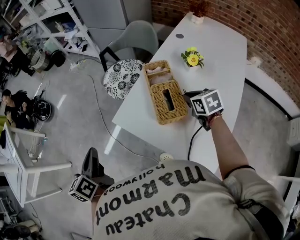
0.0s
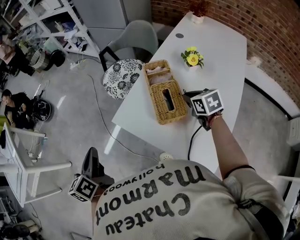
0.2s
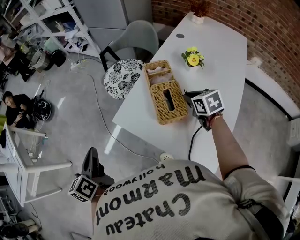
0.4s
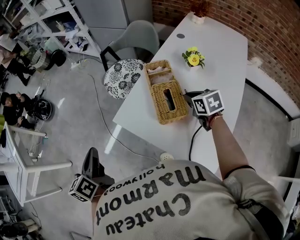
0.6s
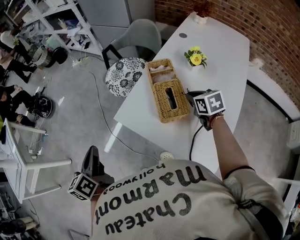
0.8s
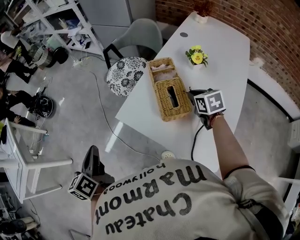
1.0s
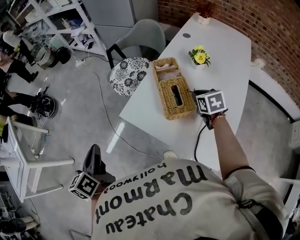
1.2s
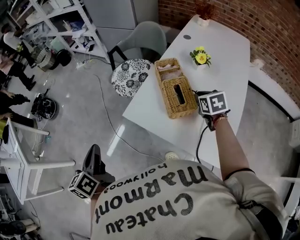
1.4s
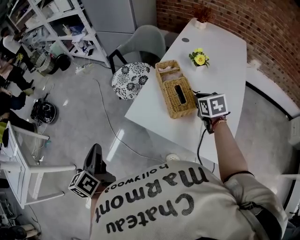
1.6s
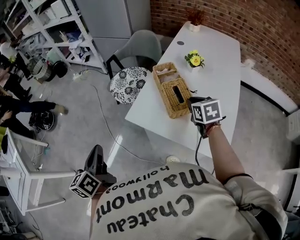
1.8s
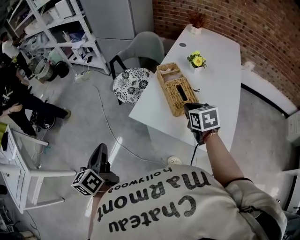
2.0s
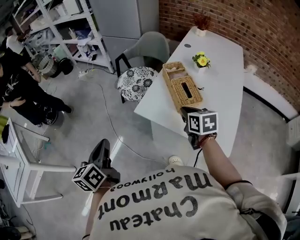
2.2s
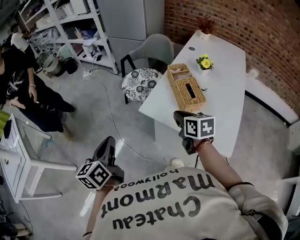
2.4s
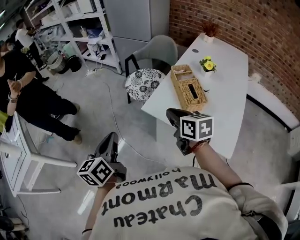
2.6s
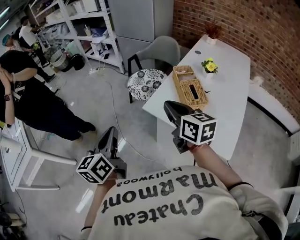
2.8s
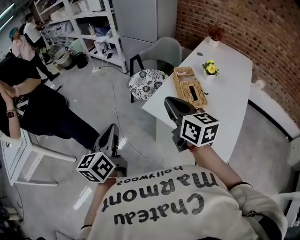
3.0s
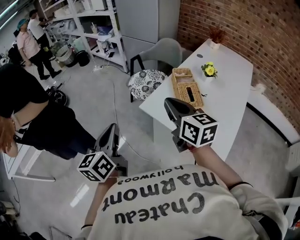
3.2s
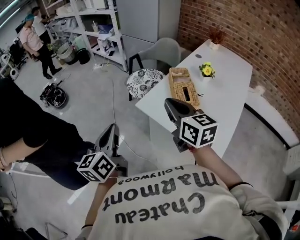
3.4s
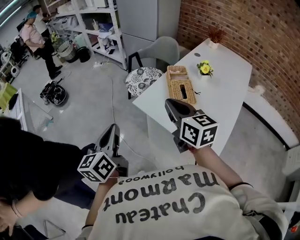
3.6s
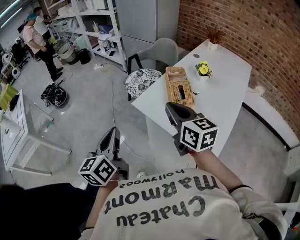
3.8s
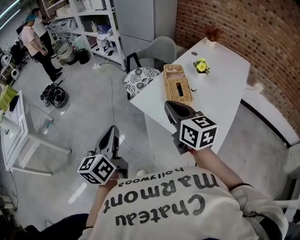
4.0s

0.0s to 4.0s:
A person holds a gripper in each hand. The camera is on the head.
0.0s to 1.4s: There are only small adjustments of the grippers.
1.4s to 2.6s: The left gripper shifts approximately 5 cm backward; the right gripper heads to the left and backward, covering some 30 cm, and turns by about 30 degrees.
2.6s to 4.0s: The left gripper heads to the right and backward, covering some 10 cm. Meanwhile the right gripper goes approximately 15 cm upward, backward and to the right.

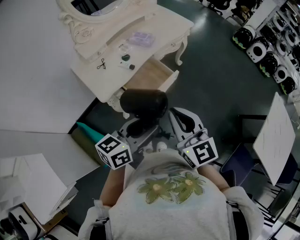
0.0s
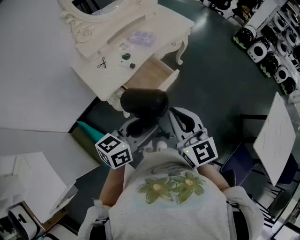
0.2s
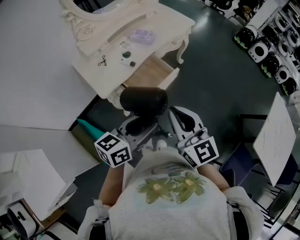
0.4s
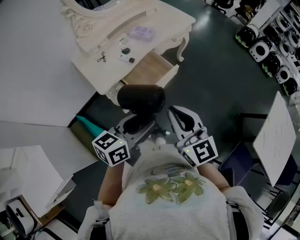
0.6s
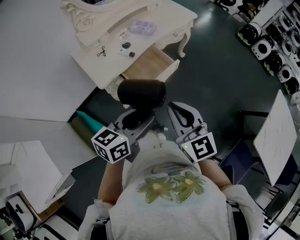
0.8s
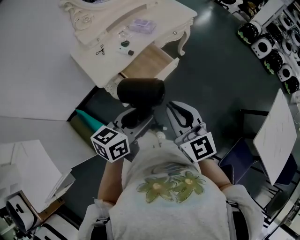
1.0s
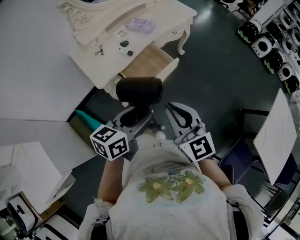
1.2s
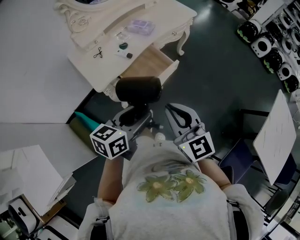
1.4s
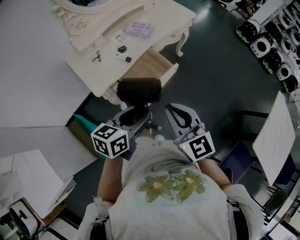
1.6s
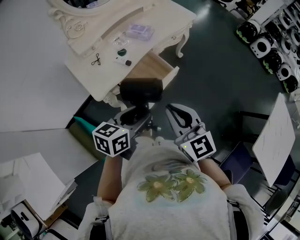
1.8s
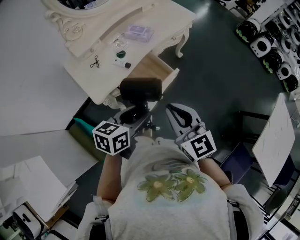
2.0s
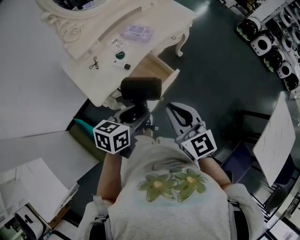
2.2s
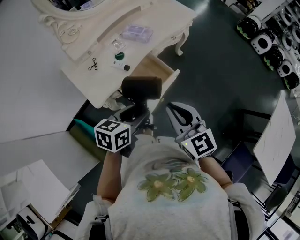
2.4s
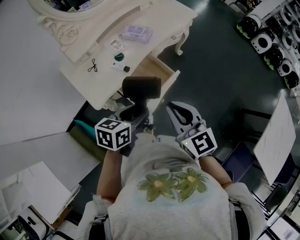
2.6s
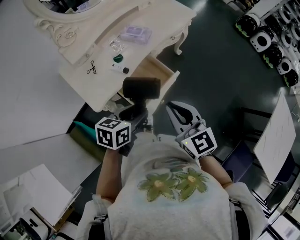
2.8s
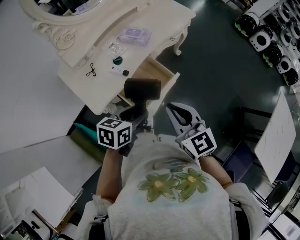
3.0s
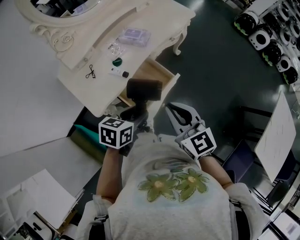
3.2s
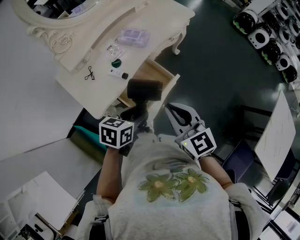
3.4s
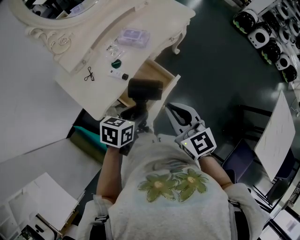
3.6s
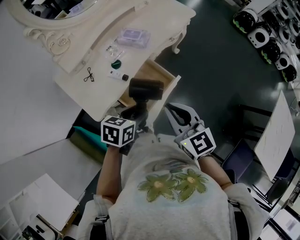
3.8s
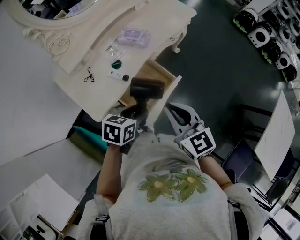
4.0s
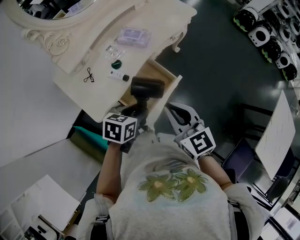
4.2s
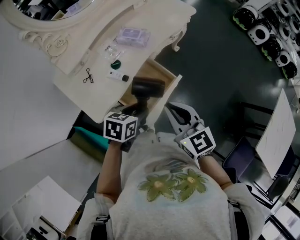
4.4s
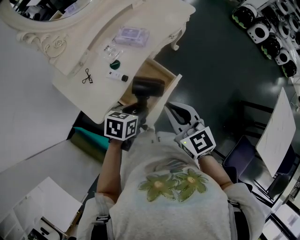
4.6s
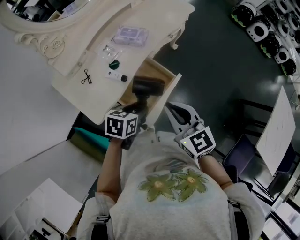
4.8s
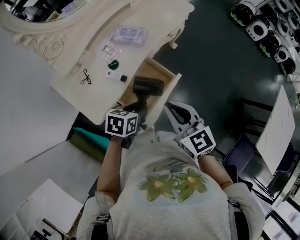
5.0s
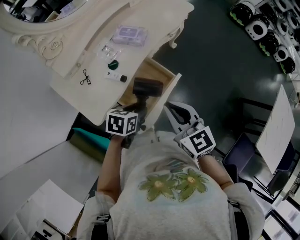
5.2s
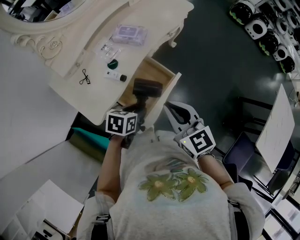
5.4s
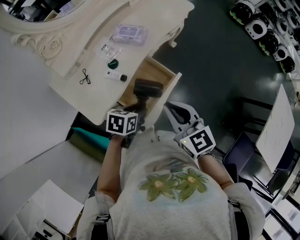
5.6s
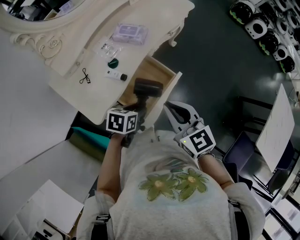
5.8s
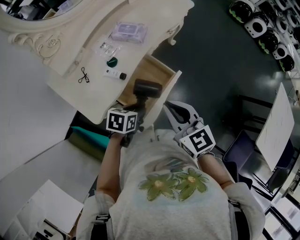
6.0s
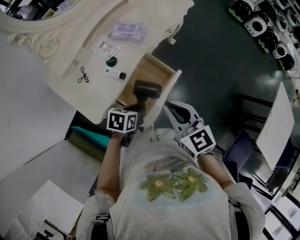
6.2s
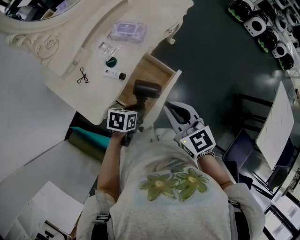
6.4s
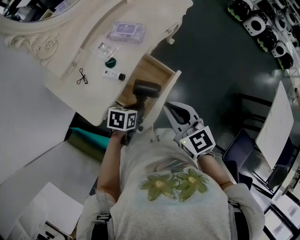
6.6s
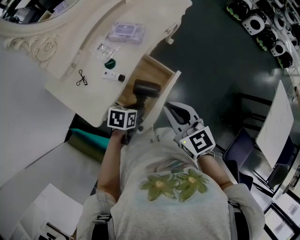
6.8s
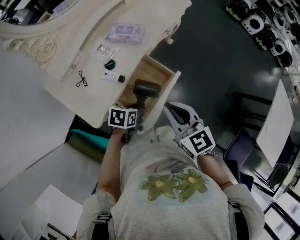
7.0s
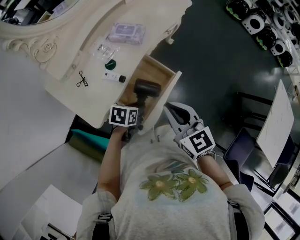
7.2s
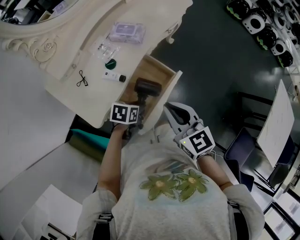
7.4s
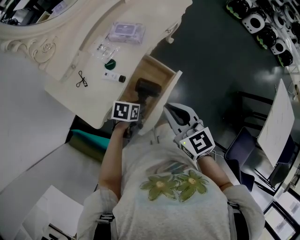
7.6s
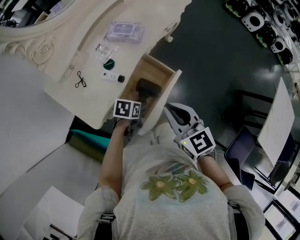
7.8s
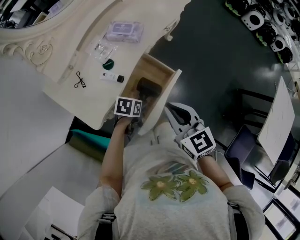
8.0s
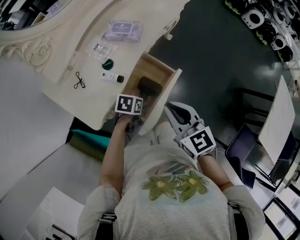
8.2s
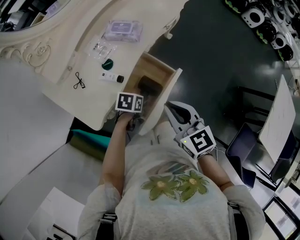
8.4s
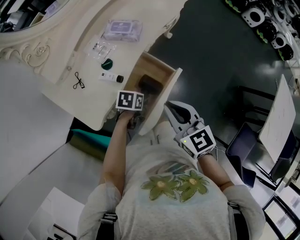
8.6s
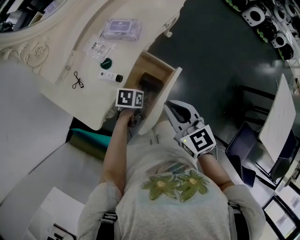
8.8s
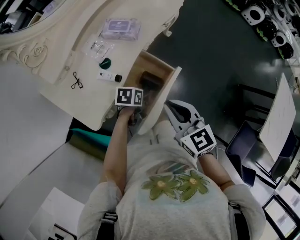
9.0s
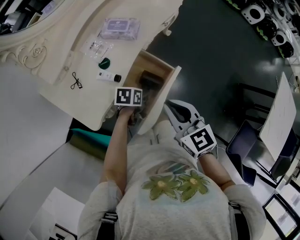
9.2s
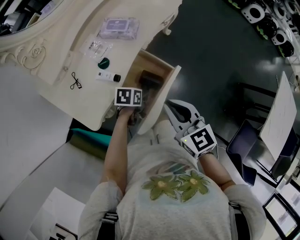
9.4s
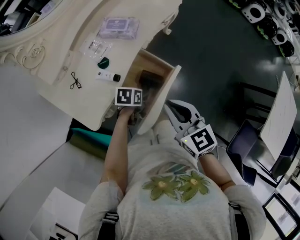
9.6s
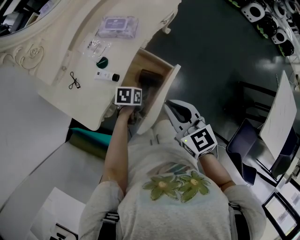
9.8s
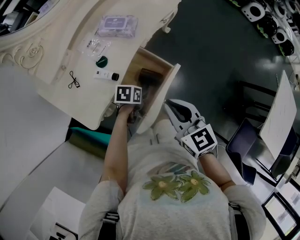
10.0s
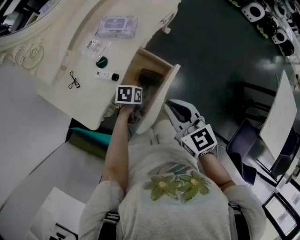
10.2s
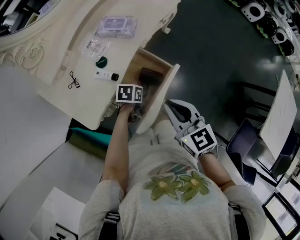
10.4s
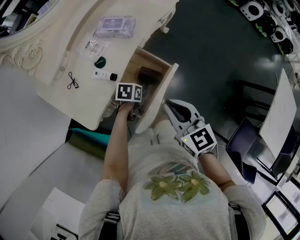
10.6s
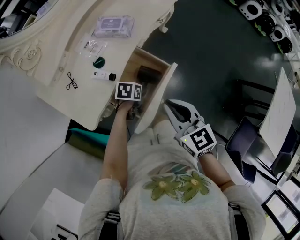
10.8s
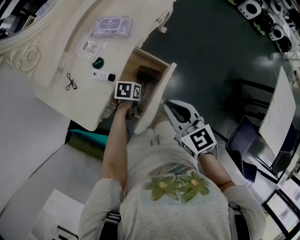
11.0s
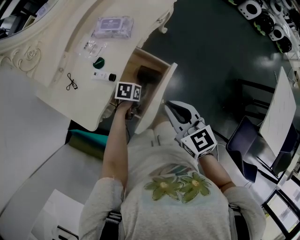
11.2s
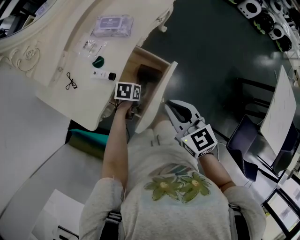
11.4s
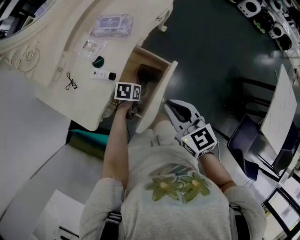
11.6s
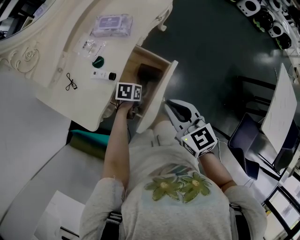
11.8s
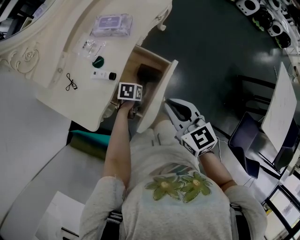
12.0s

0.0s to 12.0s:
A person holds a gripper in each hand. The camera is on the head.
0.0s to 1.6s: The left gripper is displaced downward by about 5 cm.
1.6s to 3.0s: The right gripper goes about 10 cm forward, while the left gripper moves forward and downward, about 15 cm.
3.0s to 4.4s: The left gripper travels downward by approximately 5 cm. The right gripper ends up roughly 5 cm from where it was.
4.4s to 6.0s: The left gripper is displaced downward by about 10 cm.
6.0s to 7.6s: The left gripper shifts some 5 cm downward.
7.6s to 9.0s: The left gripper shifts some 5 cm forward.
9.0s to 10.4s: The grippers make only small movements.
10.4s to 12.0s: The grippers make only small movements.

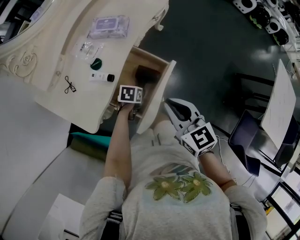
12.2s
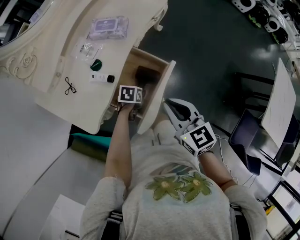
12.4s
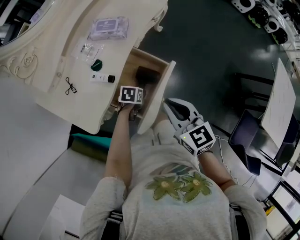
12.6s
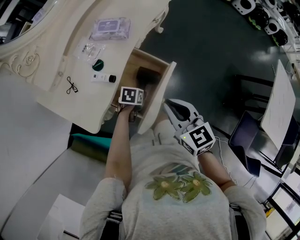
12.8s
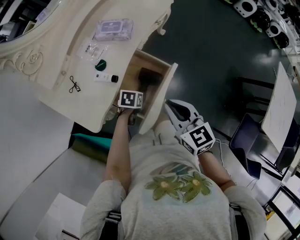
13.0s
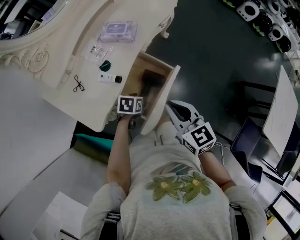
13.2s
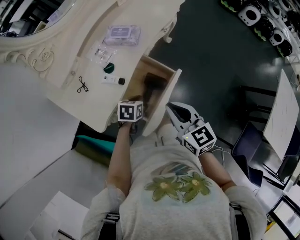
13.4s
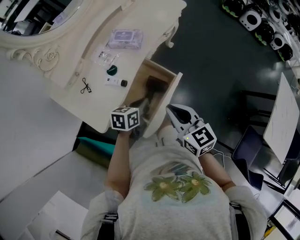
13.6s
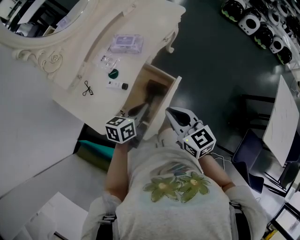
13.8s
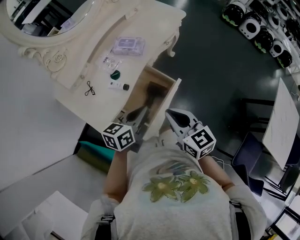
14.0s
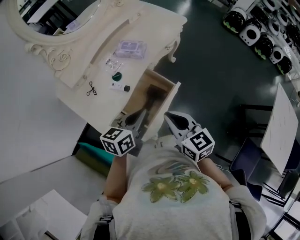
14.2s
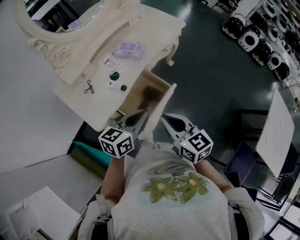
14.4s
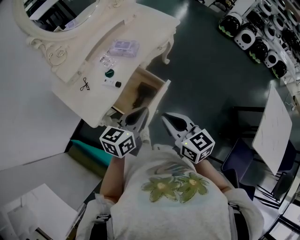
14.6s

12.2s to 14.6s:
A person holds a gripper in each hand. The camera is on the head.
12.2s to 13.4s: The left gripper travels upward by approximately 10 cm, and closes its fingers.
13.4s to 14.6s: The right gripper is displaced upward and backward by about 10 cm. The left gripper travels upward by approximately 25 cm, and tips its fingers upward by some 40 degrees.

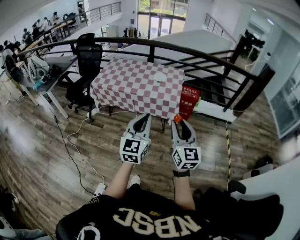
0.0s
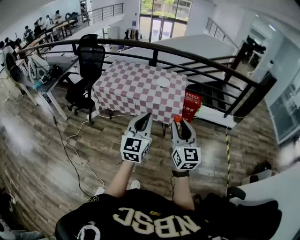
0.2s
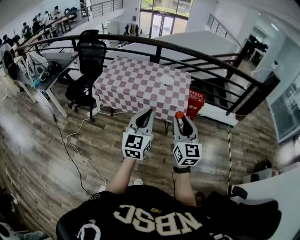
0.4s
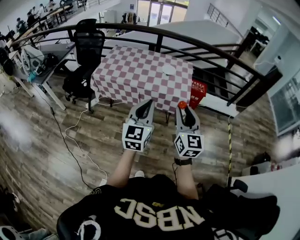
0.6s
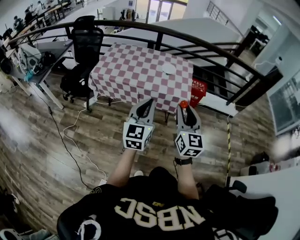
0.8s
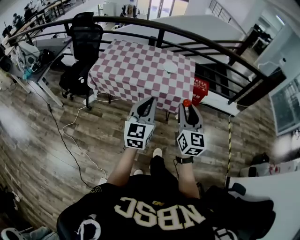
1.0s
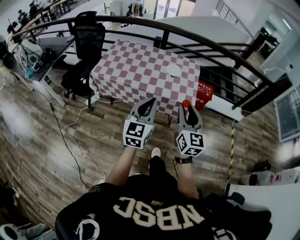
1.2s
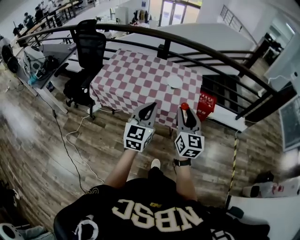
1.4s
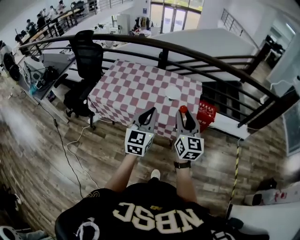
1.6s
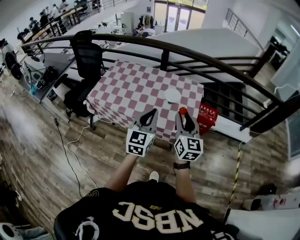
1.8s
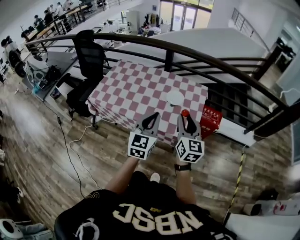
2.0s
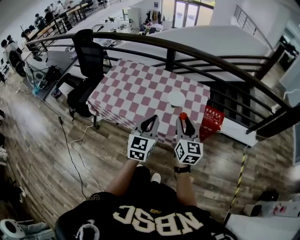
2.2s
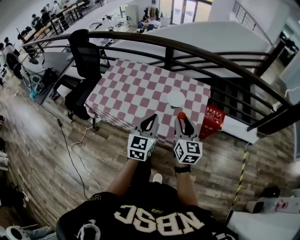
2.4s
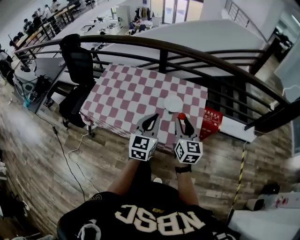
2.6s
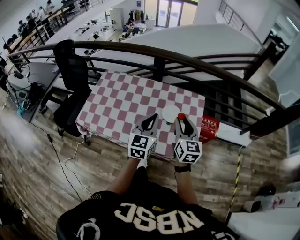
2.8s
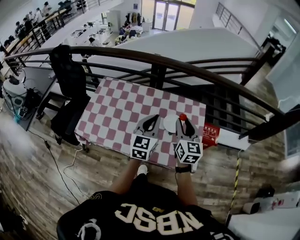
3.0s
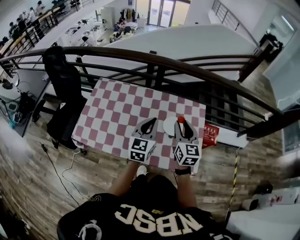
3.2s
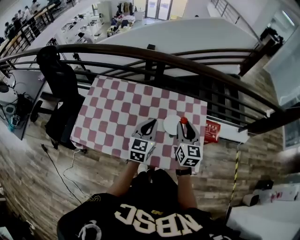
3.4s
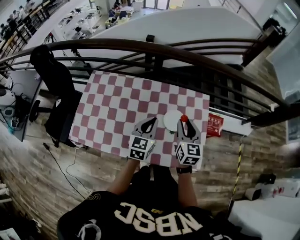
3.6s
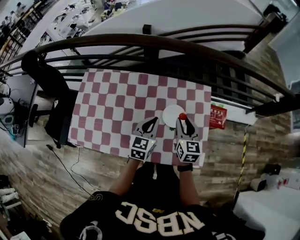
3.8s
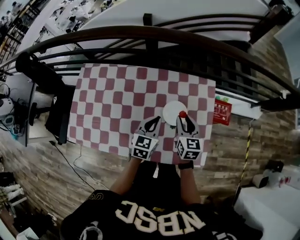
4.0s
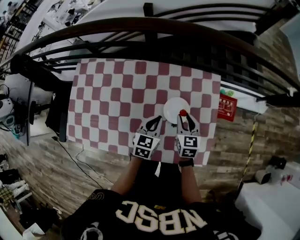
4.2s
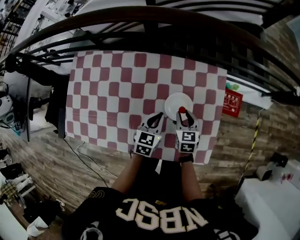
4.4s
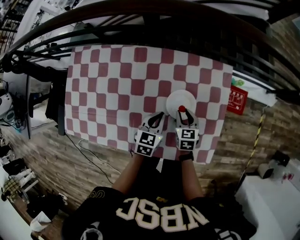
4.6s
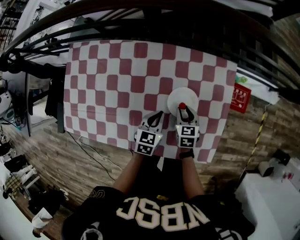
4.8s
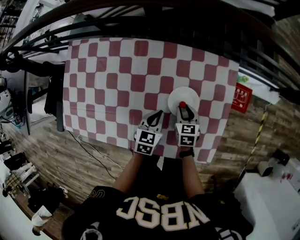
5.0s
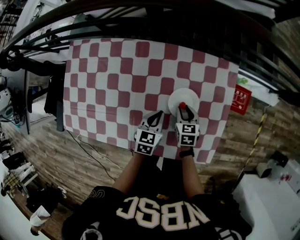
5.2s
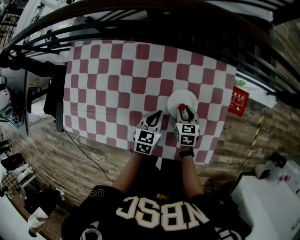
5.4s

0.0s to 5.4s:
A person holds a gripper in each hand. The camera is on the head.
0.0s to 1.4s: The grippers both shift forward by approximately 30 cm.
1.4s to 2.8s: Both grippers travel together forward, about 35 cm.
2.8s to 4.0s: Both grippers travel together downward and forward, roughly 25 cm. The right gripper changes its angle by about 20 degrees, while the left gripper swivels some 20 degrees.
4.0s to 5.4s: The two grippers go about 15 cm downward.
